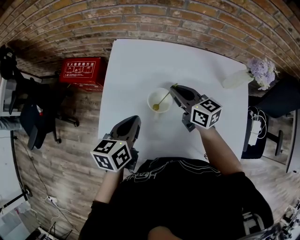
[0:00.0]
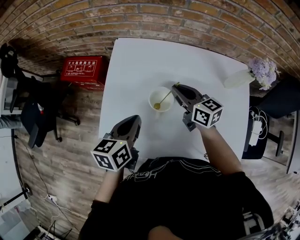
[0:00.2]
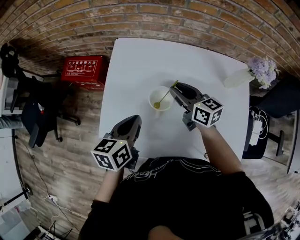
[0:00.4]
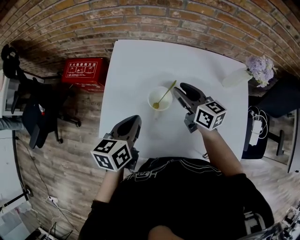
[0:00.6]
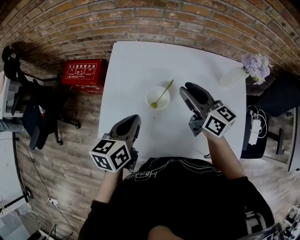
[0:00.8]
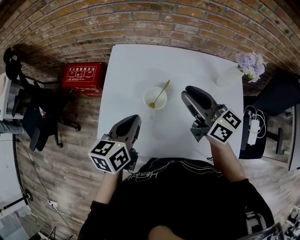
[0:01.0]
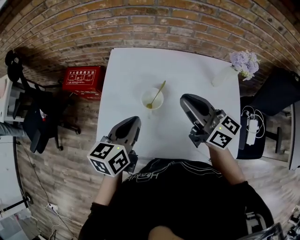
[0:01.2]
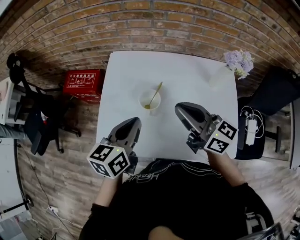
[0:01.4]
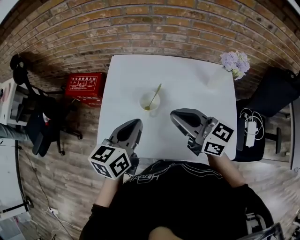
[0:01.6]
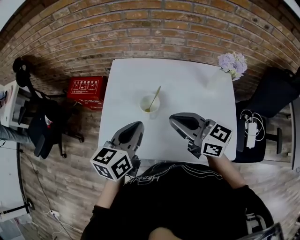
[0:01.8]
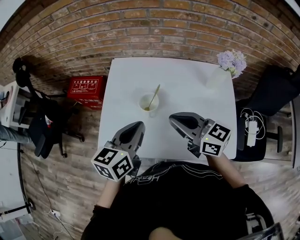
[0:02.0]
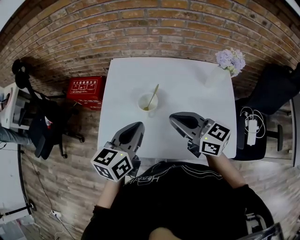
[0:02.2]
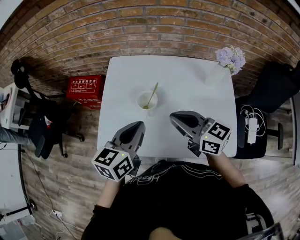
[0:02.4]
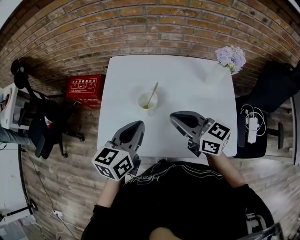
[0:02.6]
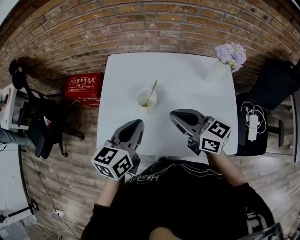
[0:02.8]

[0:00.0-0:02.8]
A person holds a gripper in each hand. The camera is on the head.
0:00.0 to 0:01.4: The right gripper is displaced upward and backward by approximately 20 cm, rotates some 20 degrees, and opens, then closes once more. Meanwhile the left gripper travels upward by approximately 10 cm.
0:01.4 to 0:02.8: The right gripper shifts by some 5 cm.

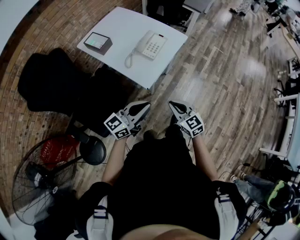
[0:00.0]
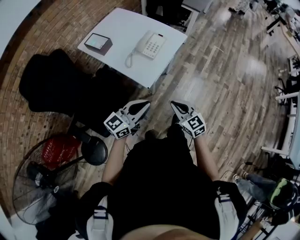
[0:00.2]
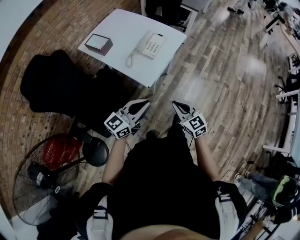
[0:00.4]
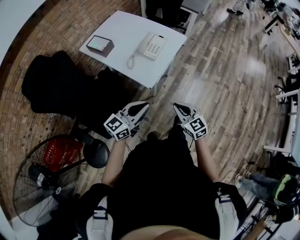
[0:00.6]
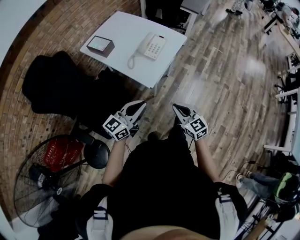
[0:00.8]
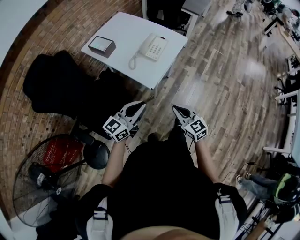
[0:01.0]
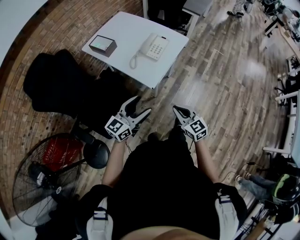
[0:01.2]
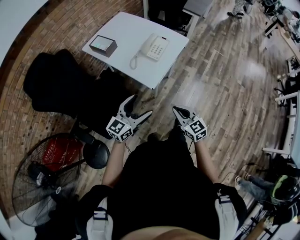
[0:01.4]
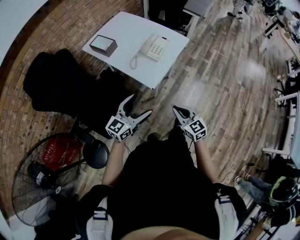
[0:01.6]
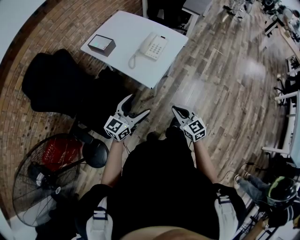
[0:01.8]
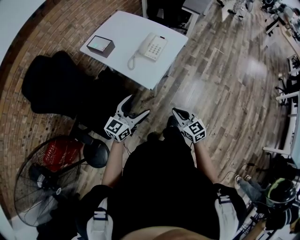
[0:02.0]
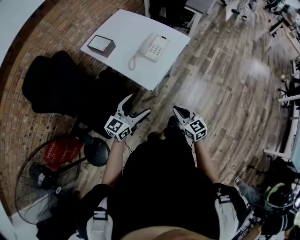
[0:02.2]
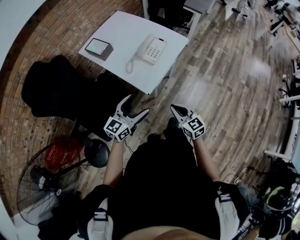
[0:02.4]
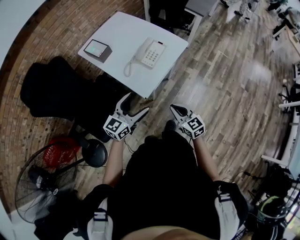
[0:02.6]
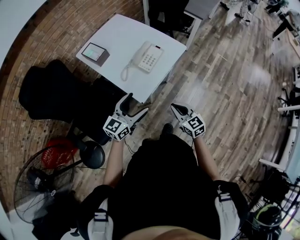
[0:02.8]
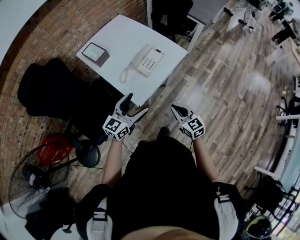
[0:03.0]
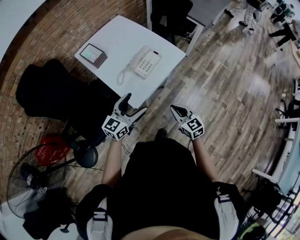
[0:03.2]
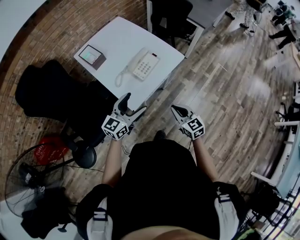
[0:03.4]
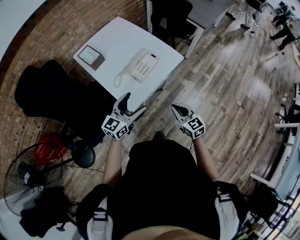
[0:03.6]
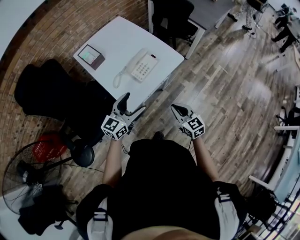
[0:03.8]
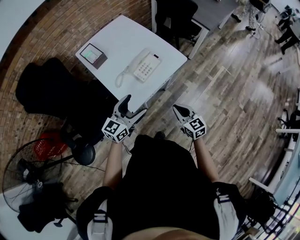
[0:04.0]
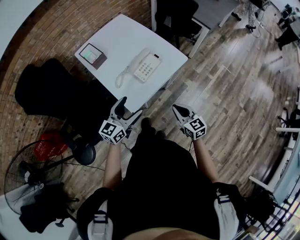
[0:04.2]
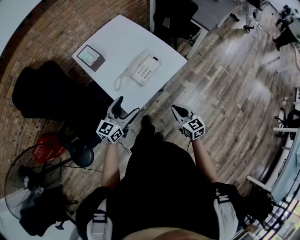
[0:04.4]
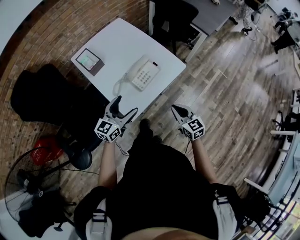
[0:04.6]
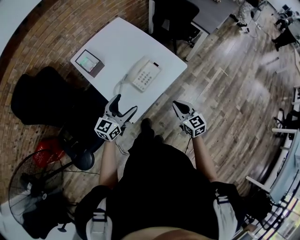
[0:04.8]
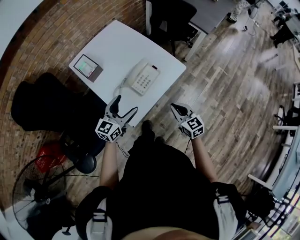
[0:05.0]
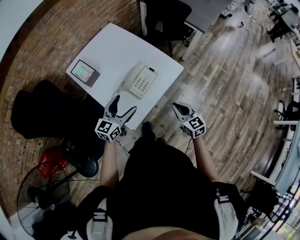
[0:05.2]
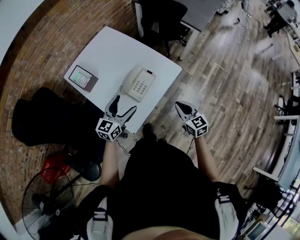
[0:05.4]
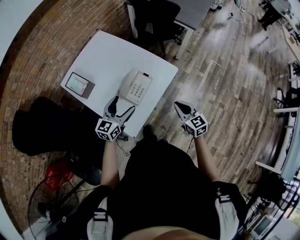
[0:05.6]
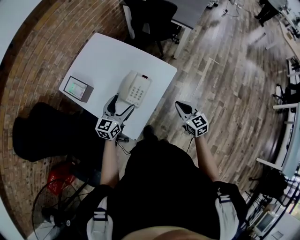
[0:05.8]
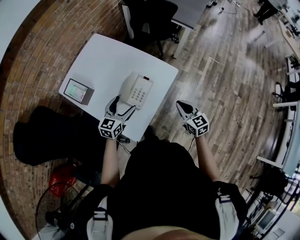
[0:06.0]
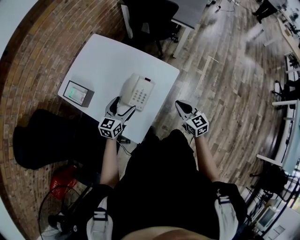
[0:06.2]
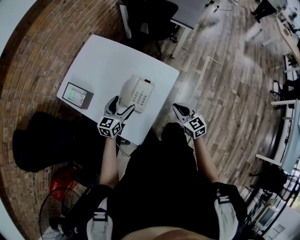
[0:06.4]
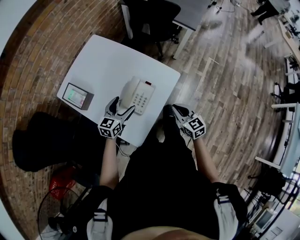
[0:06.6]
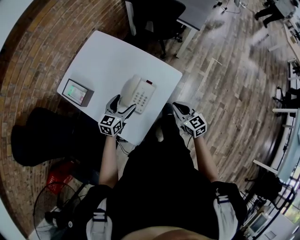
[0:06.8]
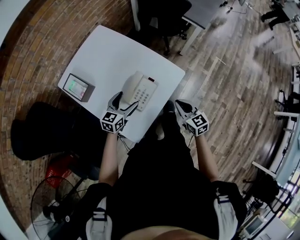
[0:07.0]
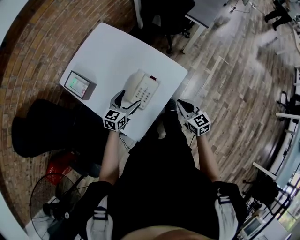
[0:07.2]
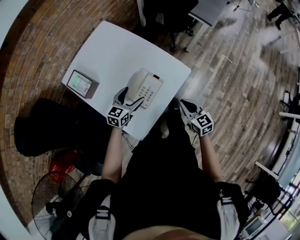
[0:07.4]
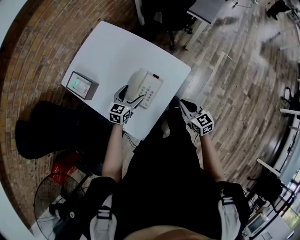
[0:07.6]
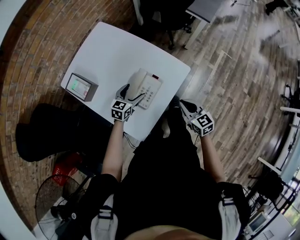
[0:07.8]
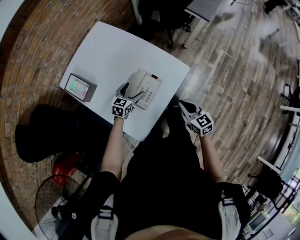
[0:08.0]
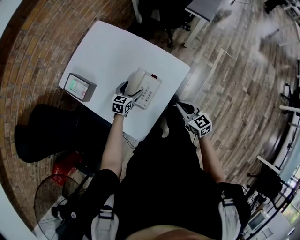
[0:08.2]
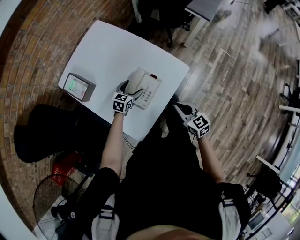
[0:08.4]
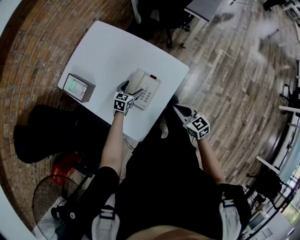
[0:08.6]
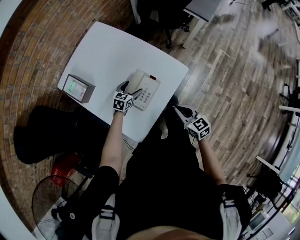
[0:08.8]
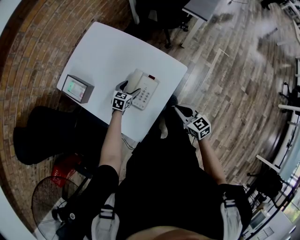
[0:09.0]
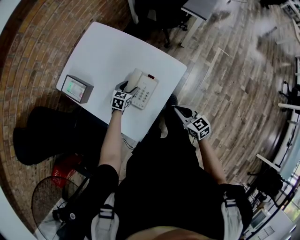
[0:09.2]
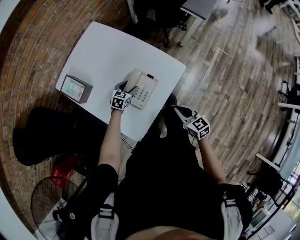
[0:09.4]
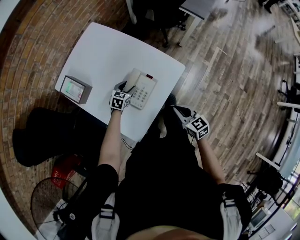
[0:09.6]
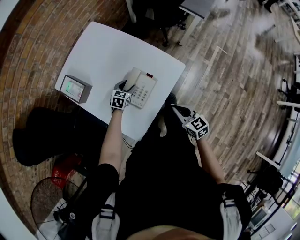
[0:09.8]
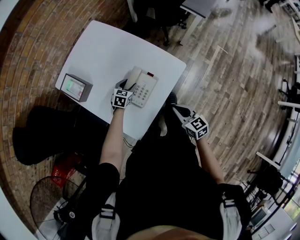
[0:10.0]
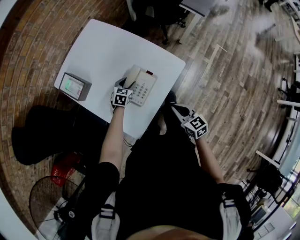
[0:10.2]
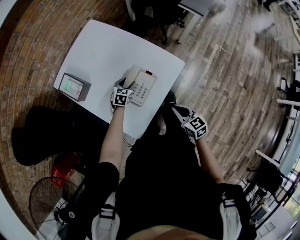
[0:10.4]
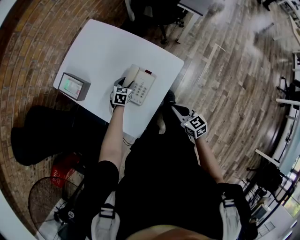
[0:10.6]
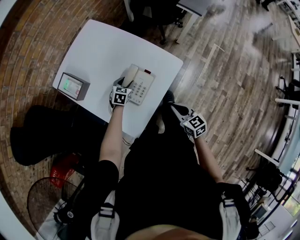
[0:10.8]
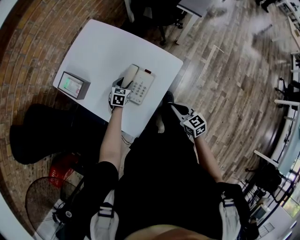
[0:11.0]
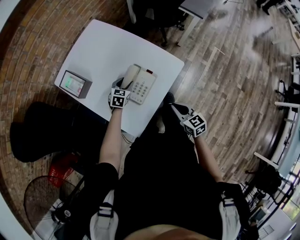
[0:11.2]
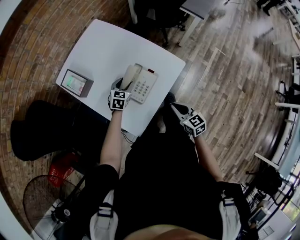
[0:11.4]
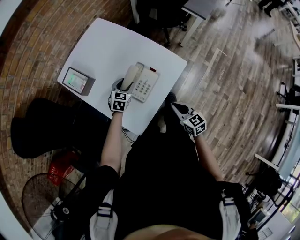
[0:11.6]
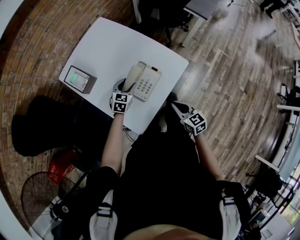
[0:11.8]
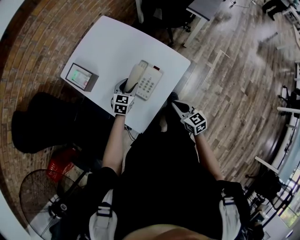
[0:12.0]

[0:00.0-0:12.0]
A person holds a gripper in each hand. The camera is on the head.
0:00.0 to 0:01.6: The left gripper heads to the left, covering roughly 5 cm, and opens, while the right gripper shifts by roughly 5 cm.
0:01.6 to 0:03.0: Both grippers move forward and to the right, roughly 20 cm.
0:03.0 to 0:04.4: The left gripper goes some 10 cm forward; the right gripper moves forward and to the right, about 10 cm.
0:04.4 to 0:06.0: The grippers both shift forward by about 20 cm.
0:06.0 to 0:07.6: The left gripper goes roughly 10 cm downward and forward. Meanwhile the right gripper goes approximately 5 cm downward and forward.
0:07.6 to 0:09.0: The left gripper moves downward and forward, approximately 10 cm.
0:09.0 to 0:10.4: The left gripper closes.
0:10.4 to 0:12.0: The left gripper heads upward and backward, covering some 10 cm.

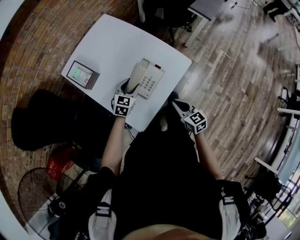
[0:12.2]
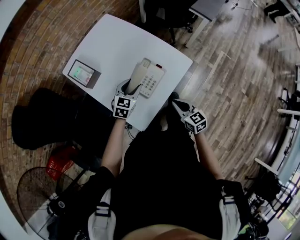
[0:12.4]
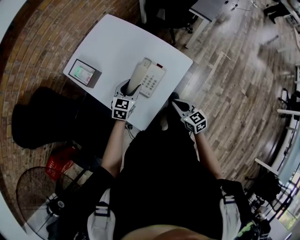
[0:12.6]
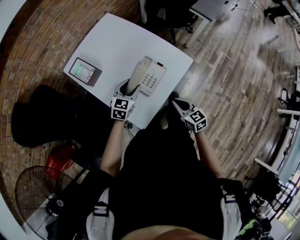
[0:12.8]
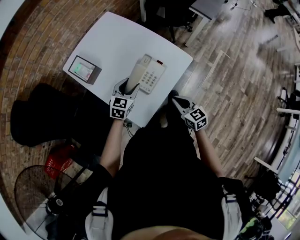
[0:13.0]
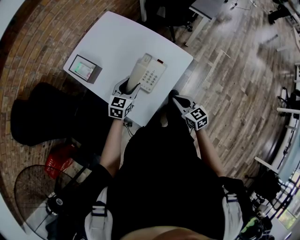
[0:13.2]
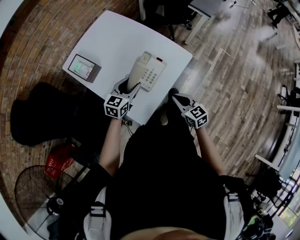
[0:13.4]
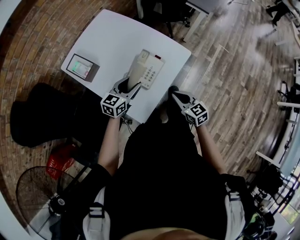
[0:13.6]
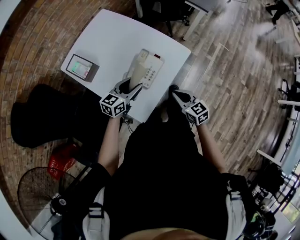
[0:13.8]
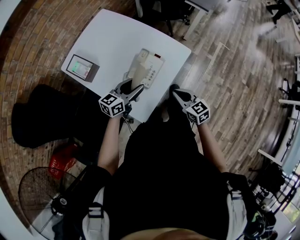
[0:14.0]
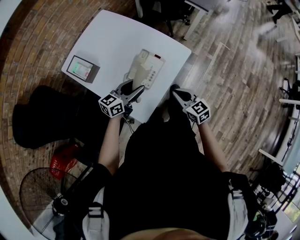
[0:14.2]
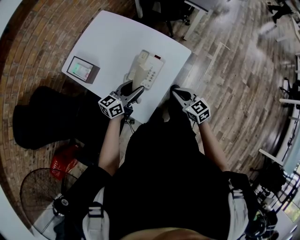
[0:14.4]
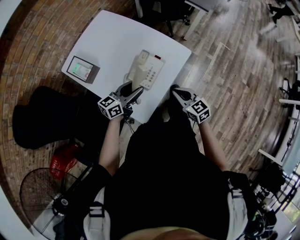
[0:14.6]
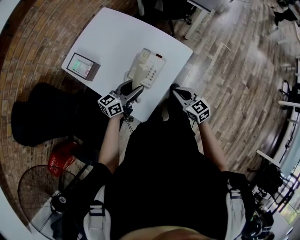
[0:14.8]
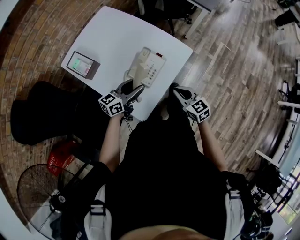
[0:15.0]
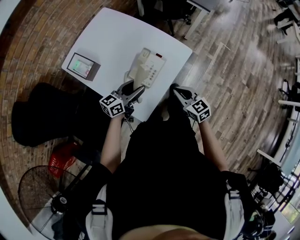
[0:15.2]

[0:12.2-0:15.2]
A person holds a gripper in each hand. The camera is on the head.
0:12.2 to 0:13.8: The left gripper heads backward and upward, covering about 10 cm, and changes its angle by roughly 30 degrees.
0:13.8 to 0:15.2: The grippers move only a little.

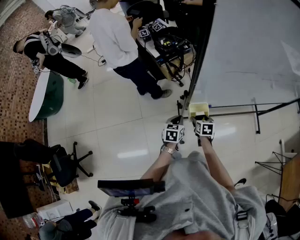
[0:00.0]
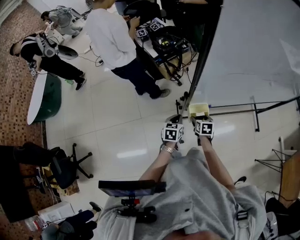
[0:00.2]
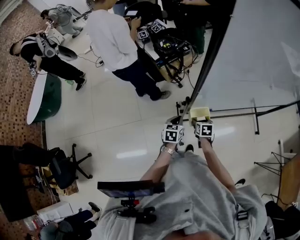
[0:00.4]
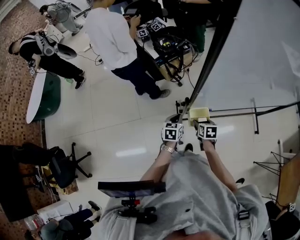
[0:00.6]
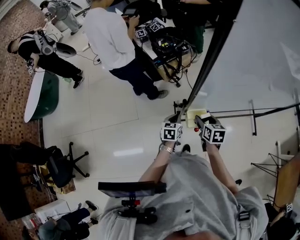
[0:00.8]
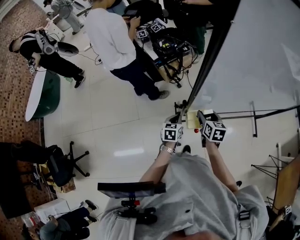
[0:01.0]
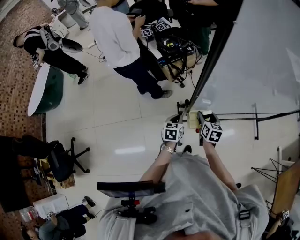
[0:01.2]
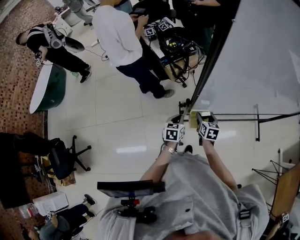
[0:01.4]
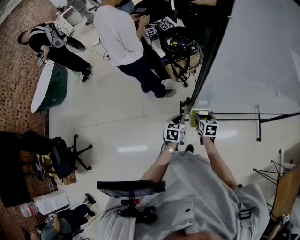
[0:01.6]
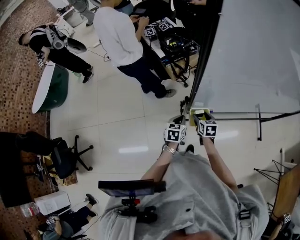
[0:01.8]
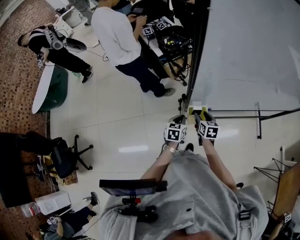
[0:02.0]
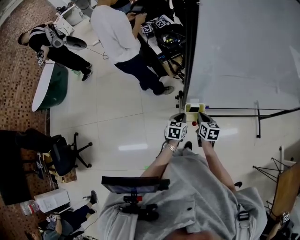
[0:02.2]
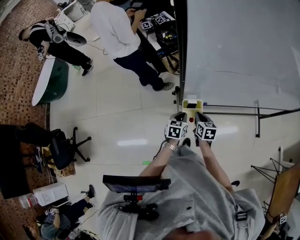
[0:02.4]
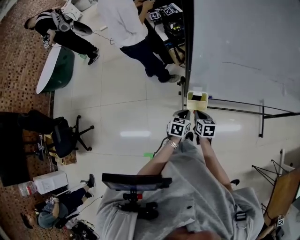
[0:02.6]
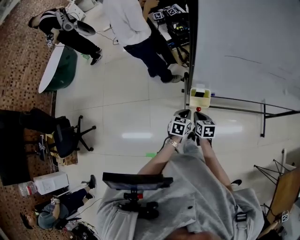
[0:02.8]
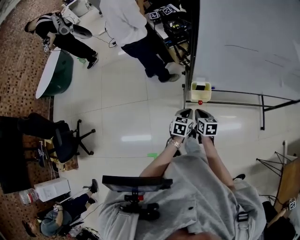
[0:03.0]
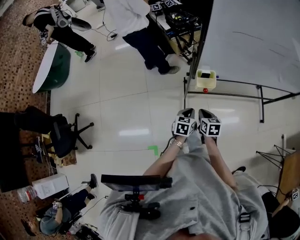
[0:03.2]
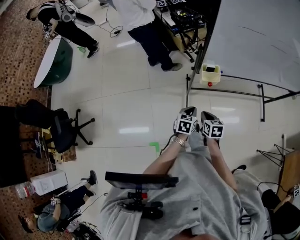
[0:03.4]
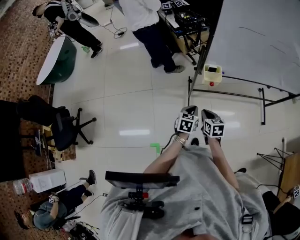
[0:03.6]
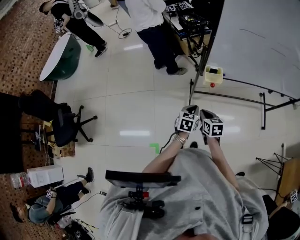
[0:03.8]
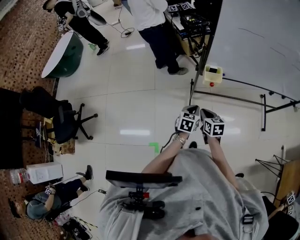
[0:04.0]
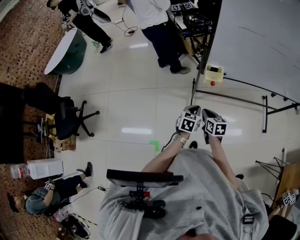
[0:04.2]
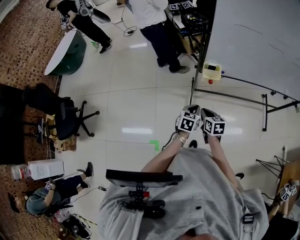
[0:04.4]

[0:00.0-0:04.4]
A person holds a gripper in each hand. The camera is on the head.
0:00.0 to 0:01.4: The grippers both shift forward by about 5 cm. The right gripper moves approximately 15 cm upward and comes back.
0:01.4 to 0:03.0: The right gripper goes some 15 cm backward, and closes up. The left gripper heads backward and to the right, covering some 15 cm.
0:03.0 to 0:04.4: The two grippers go approximately 15 cm backward.

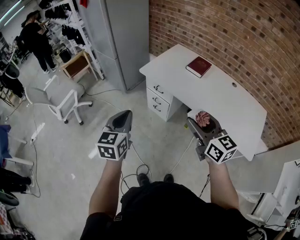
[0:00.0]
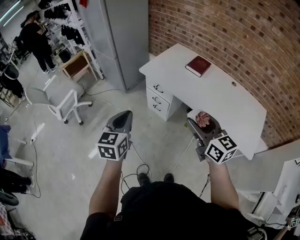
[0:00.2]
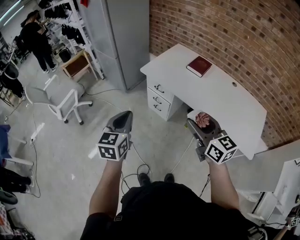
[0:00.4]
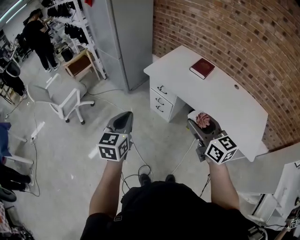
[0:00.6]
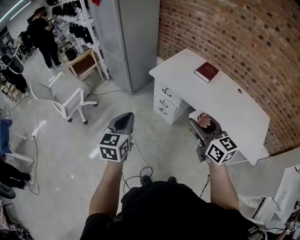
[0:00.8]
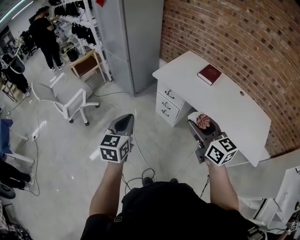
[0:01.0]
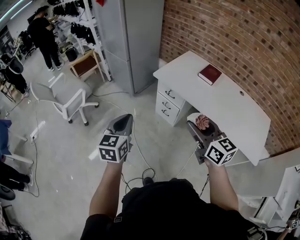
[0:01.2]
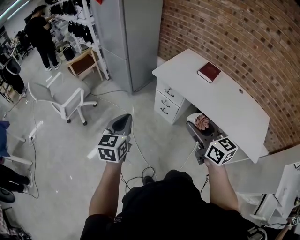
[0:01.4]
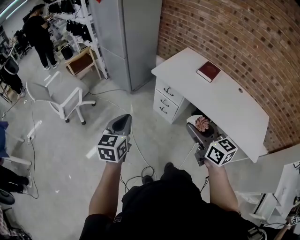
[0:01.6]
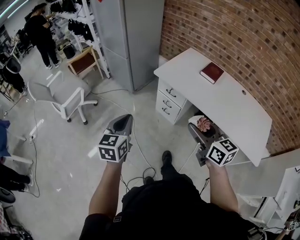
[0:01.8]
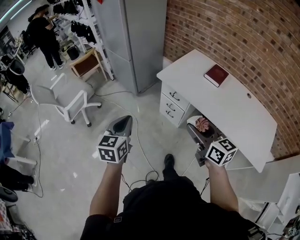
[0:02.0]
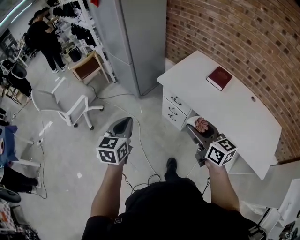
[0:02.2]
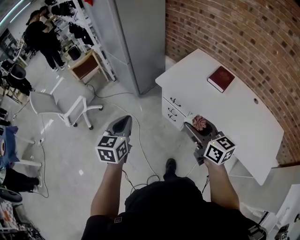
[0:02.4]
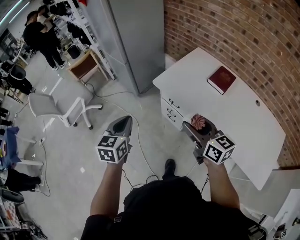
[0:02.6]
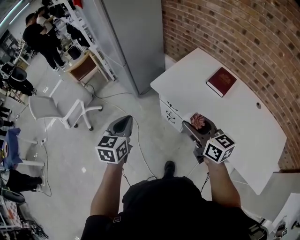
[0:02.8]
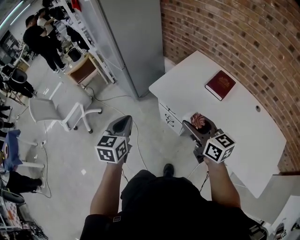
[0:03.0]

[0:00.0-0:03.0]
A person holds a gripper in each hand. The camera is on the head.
0:00.0 to 0:01.6: The grippers both shift to the left by about 10 cm.
0:01.6 to 0:03.0: Both grippers travel together forward and to the right, about 25 cm.
